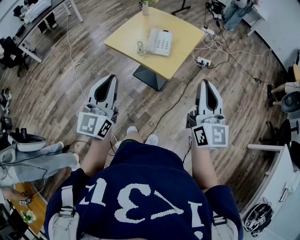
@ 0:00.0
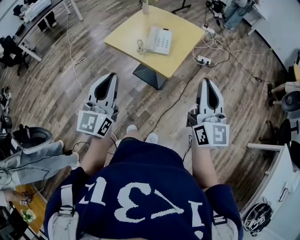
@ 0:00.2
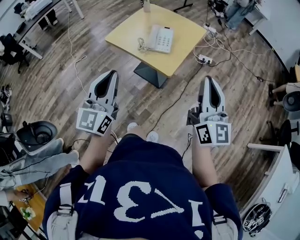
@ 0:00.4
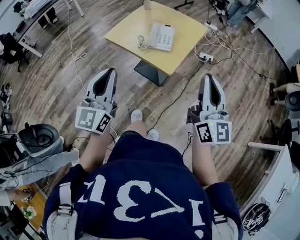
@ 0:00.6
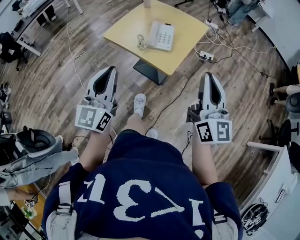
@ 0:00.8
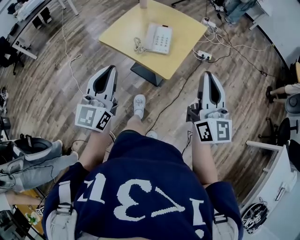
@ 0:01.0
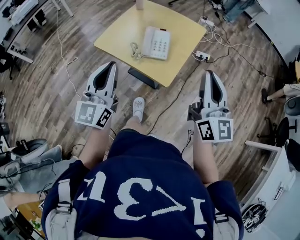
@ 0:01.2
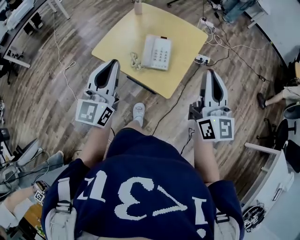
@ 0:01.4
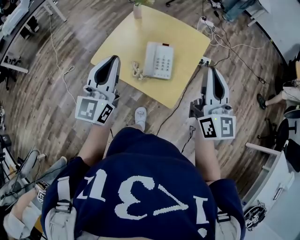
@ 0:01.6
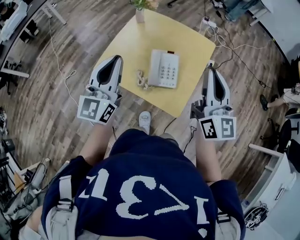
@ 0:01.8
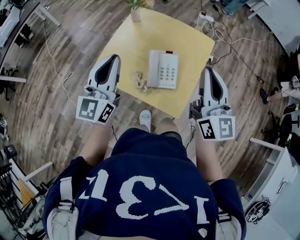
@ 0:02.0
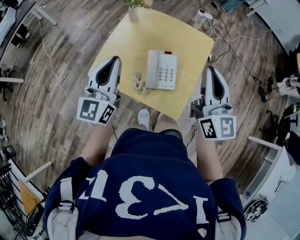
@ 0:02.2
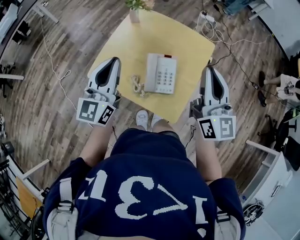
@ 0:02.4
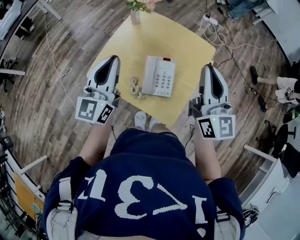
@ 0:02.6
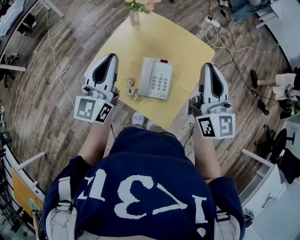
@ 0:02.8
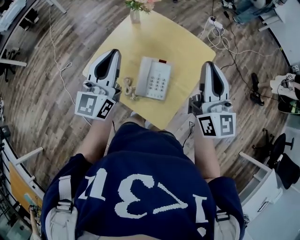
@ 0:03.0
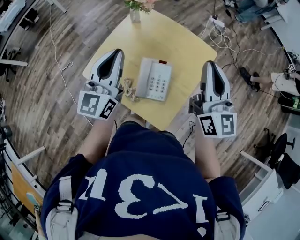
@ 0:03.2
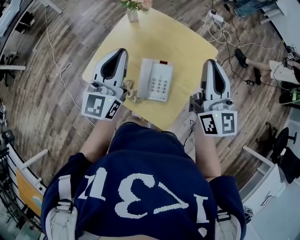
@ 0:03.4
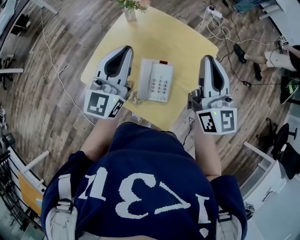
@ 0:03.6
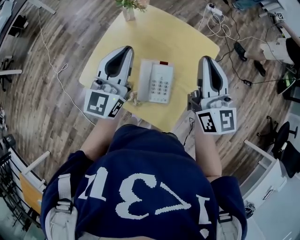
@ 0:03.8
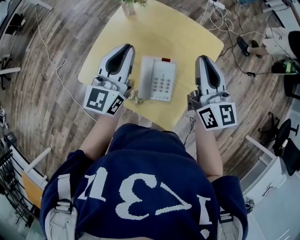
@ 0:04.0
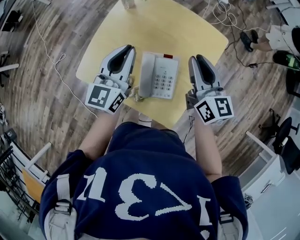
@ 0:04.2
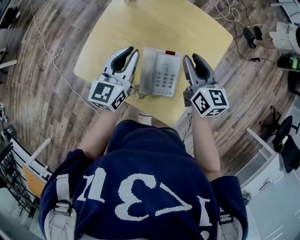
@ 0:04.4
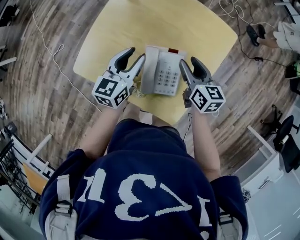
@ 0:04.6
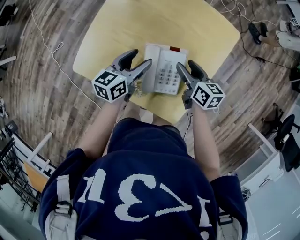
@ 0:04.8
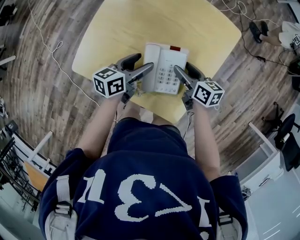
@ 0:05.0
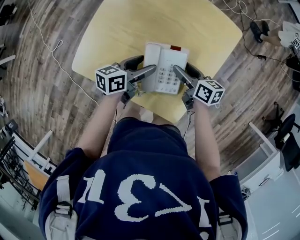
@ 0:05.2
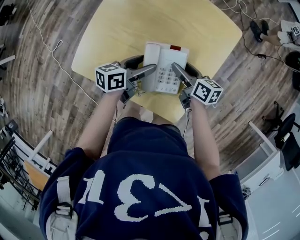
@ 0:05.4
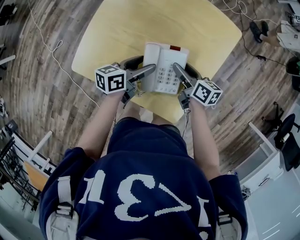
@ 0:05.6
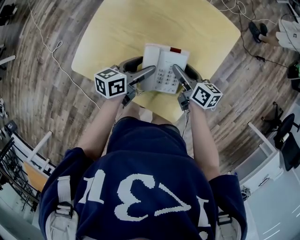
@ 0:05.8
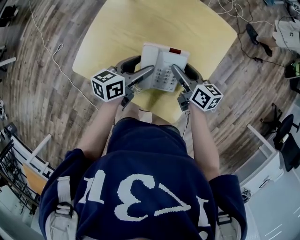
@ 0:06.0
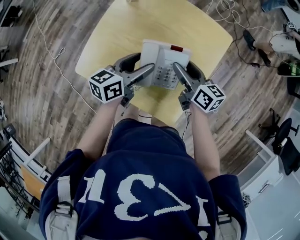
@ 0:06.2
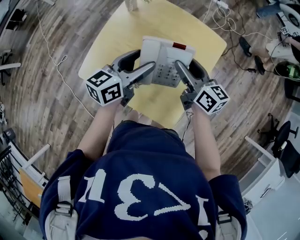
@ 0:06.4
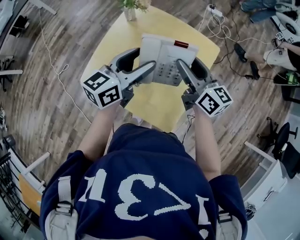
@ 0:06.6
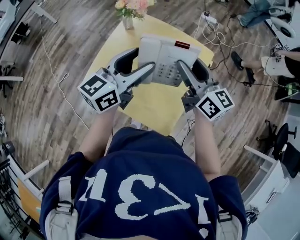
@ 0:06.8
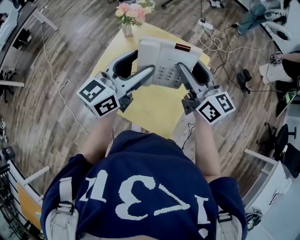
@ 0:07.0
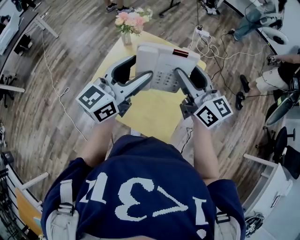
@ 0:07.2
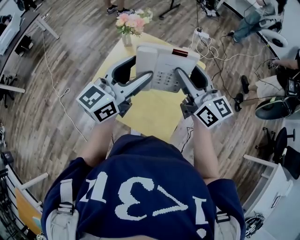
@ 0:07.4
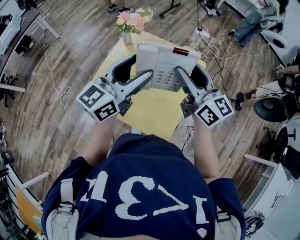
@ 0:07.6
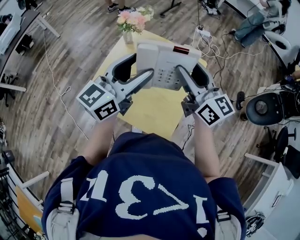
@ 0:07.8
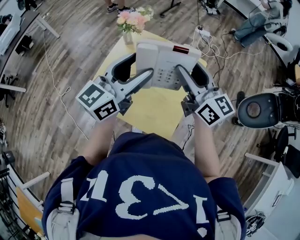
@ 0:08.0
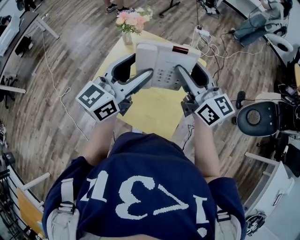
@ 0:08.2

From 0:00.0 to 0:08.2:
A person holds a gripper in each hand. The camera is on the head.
From 0:00.0 to 0:01.6: Both grippers move forward, roughly 30 cm.
From 0:01.6 to 0:03.2: The grippers both shift forward by roughly 20 cm.
From 0:03.2 to 0:05.0: The grippers both shift downward by about 35 cm. The left gripper rotates about 60 degrees, and opens up; the right gripper tilts its fingers about 40 degrees downward, and opens up.
From 0:05.0 to 0:06.6: Both grippers travel together upward, some 20 cm. The right gripper turns by roughly 30 degrees; the left gripper turns by approximately 30 degrees.
From 0:06.6 to 0:08.2: Both grippers travel together upward, roughly 10 cm.
